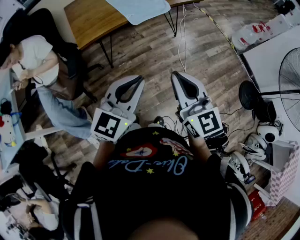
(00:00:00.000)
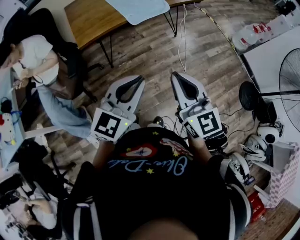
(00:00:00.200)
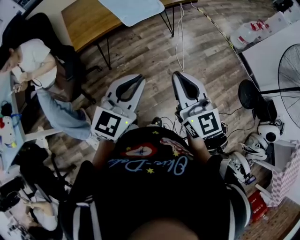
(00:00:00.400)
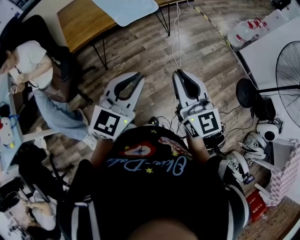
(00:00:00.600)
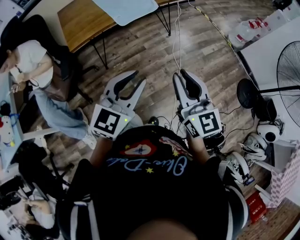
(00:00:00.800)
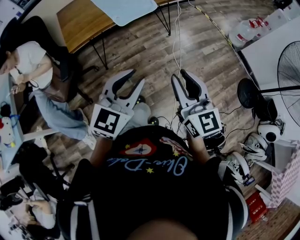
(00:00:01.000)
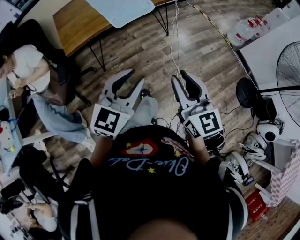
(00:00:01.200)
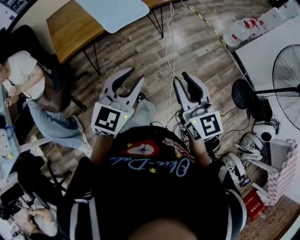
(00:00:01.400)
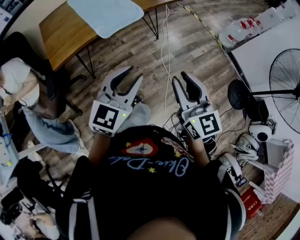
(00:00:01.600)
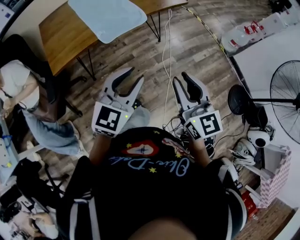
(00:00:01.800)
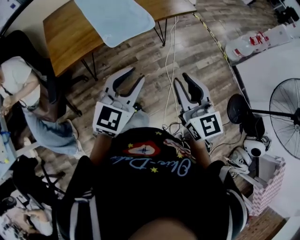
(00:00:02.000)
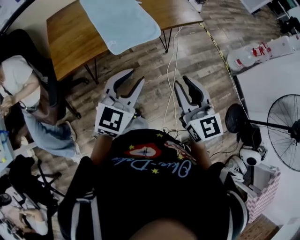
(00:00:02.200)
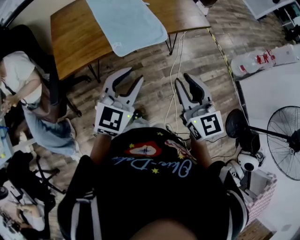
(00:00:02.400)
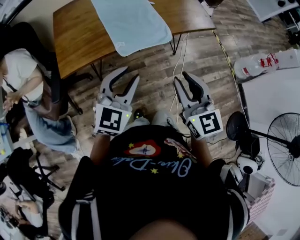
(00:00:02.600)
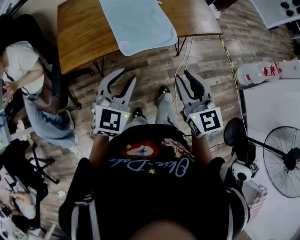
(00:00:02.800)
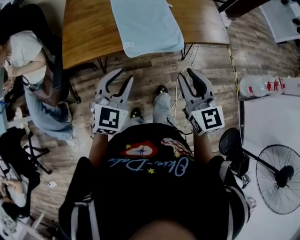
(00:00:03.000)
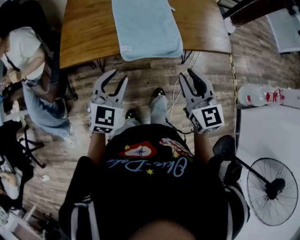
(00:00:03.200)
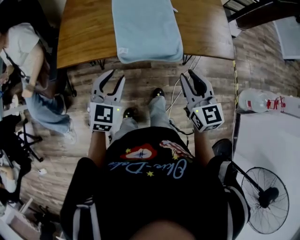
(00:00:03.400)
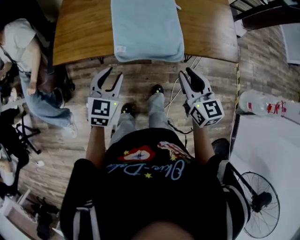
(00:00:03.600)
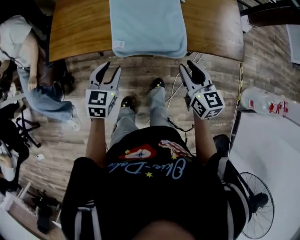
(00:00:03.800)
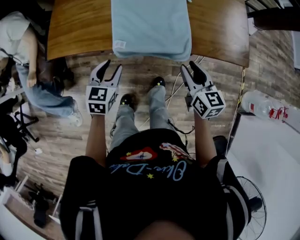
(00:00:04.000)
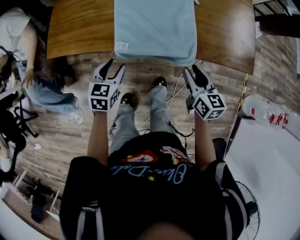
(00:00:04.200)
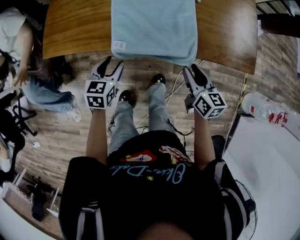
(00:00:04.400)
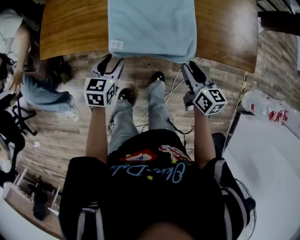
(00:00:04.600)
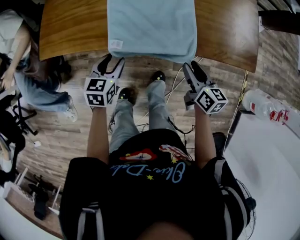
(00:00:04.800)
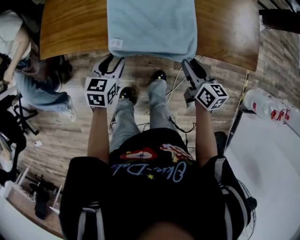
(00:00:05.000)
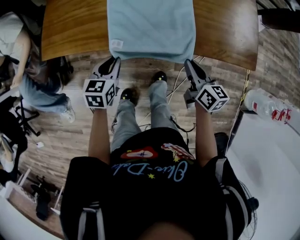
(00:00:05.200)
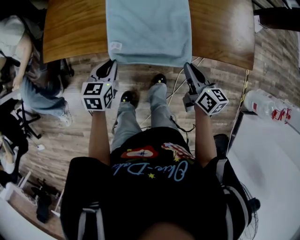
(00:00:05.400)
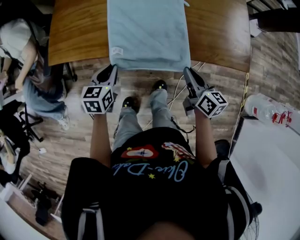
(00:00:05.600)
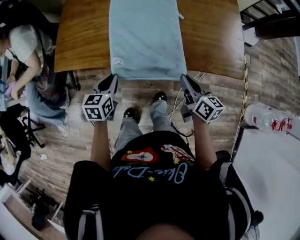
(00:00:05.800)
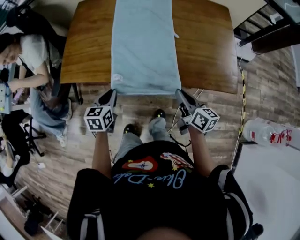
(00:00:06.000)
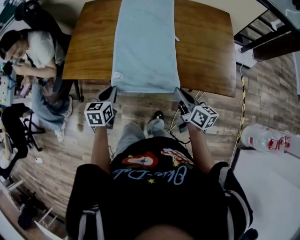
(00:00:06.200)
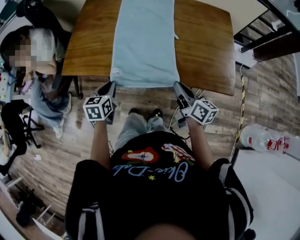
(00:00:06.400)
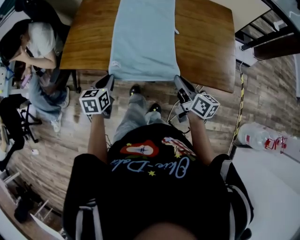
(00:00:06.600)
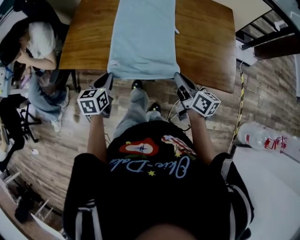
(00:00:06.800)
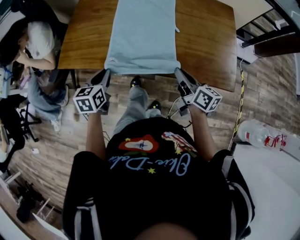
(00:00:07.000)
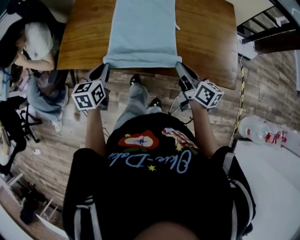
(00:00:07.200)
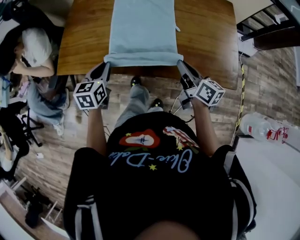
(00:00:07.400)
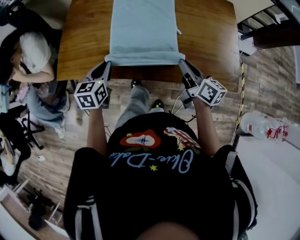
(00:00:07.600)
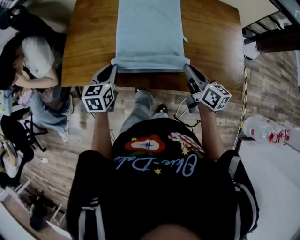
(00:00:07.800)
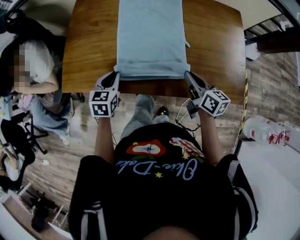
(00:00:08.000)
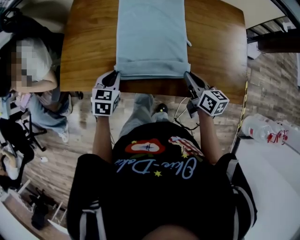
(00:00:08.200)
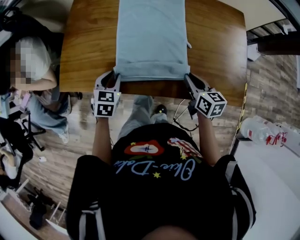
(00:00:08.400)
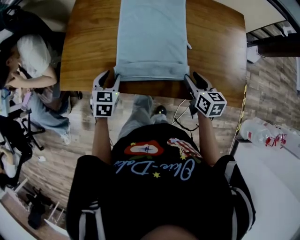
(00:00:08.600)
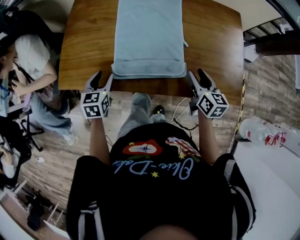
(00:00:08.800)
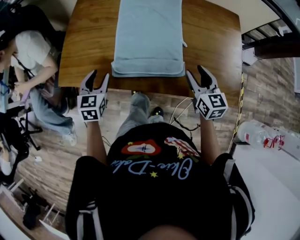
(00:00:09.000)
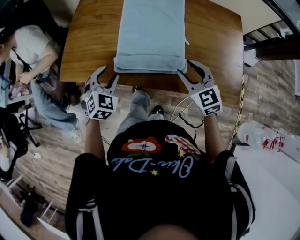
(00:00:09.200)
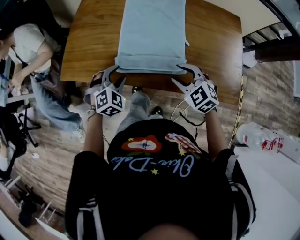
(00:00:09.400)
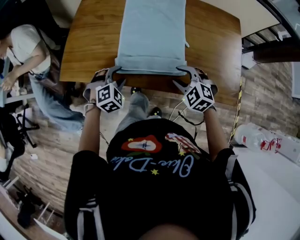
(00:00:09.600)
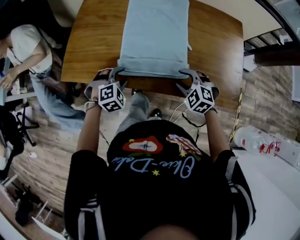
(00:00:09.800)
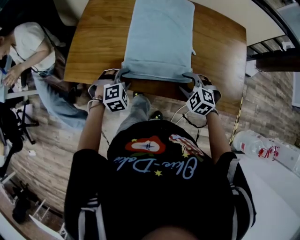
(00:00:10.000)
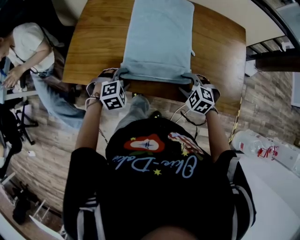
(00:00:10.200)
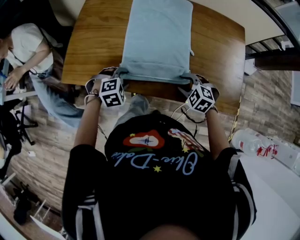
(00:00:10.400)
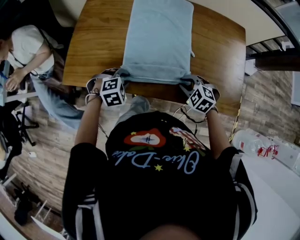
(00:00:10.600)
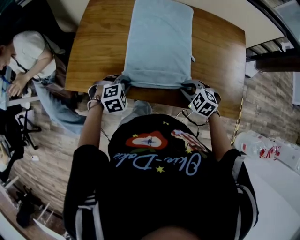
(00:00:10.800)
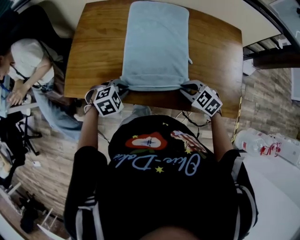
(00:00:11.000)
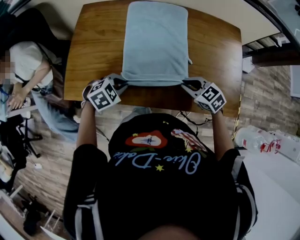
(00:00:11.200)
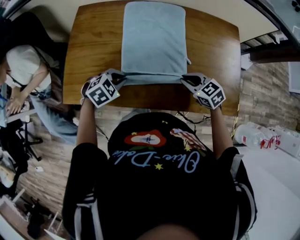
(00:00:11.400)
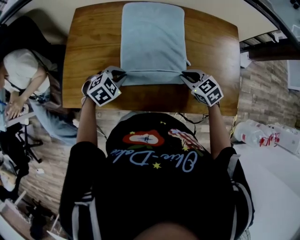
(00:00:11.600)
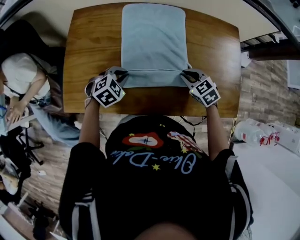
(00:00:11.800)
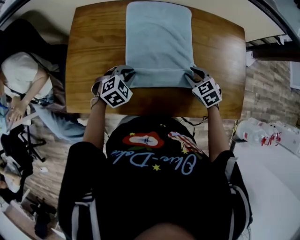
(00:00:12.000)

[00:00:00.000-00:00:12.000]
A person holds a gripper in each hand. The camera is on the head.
00:00:00.000 to 00:00:01.600: The right gripper heads to the right and forward, covering roughly 15 cm. The left gripper heads forward and to the right, covering approximately 15 cm, and opens.
00:00:01.600 to 00:00:03.000: The left gripper changes place by approximately 25 cm, and swivels some 30 degrees. Meanwhile the right gripper changes place by roughly 30 cm, and swivels some 20 degrees.
00:00:03.000 to 00:00:04.400: The right gripper heads downward, forward and to the right, covering approximately 30 cm, and rotates about 40 degrees. Meanwhile the left gripper goes approximately 25 cm downward and forward, and swivels roughly 40 degrees.
00:00:04.400 to 00:00:06.000: The left gripper heads upward, covering about 5 cm, and closes. Meanwhile the right gripper shifts by some 5 cm, swivels some 20 degrees, and closes.
00:00:06.000 to 00:00:07.600: The left gripper goes roughly 10 cm forward and upward, while the right gripper shifts roughly 10 cm forward.
00:00:07.600 to 00:00:09.000: The left gripper opens its fingers, while the right gripper swivels approximately 40 degrees, and opens its fingers.
00:00:09.000 to 00:00:10.400: The right gripper heads downward and to the left, covering roughly 10 cm, and tips its fingers downward by approximately 40 degrees. The left gripper moves downward and to the right, some 10 cm, and twists about 60 degrees clockwise, seen from behind.
00:00:10.400 to 00:00:12.000: The right gripper shifts by about 15 cm, and turns by about 30 degrees. The left gripper moves approximately 15 cm, and closes up.

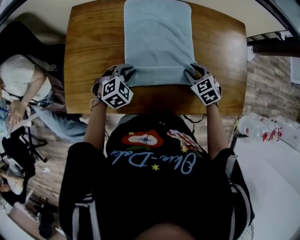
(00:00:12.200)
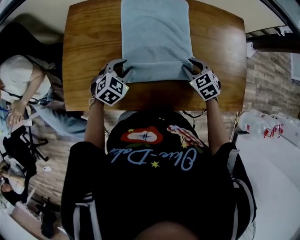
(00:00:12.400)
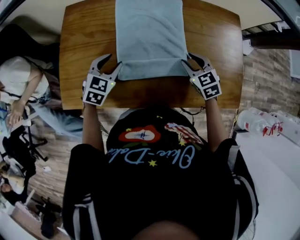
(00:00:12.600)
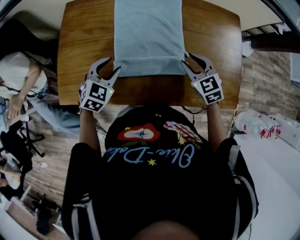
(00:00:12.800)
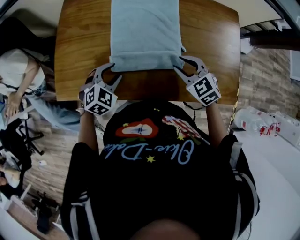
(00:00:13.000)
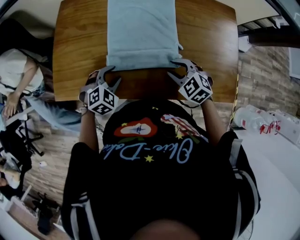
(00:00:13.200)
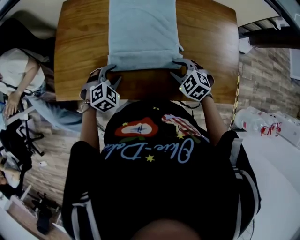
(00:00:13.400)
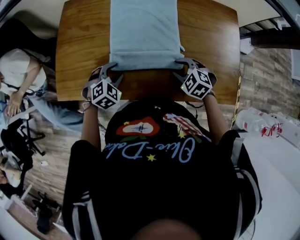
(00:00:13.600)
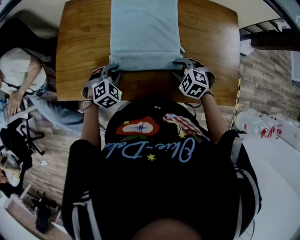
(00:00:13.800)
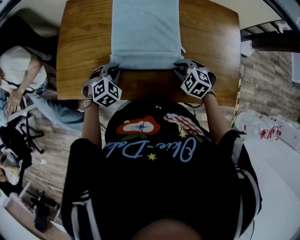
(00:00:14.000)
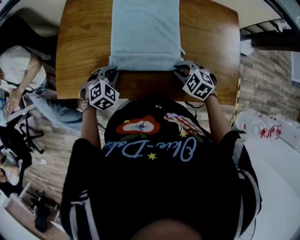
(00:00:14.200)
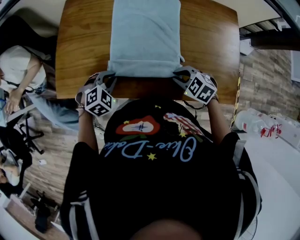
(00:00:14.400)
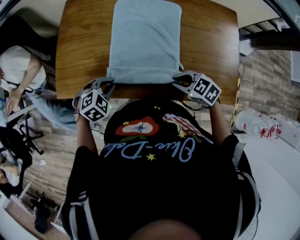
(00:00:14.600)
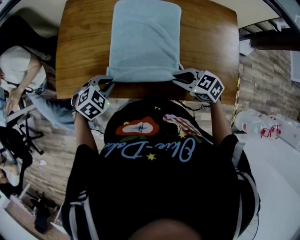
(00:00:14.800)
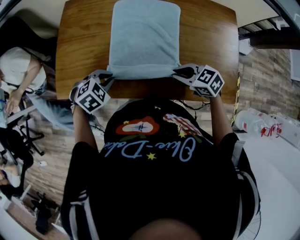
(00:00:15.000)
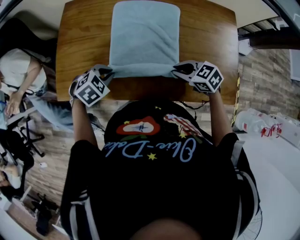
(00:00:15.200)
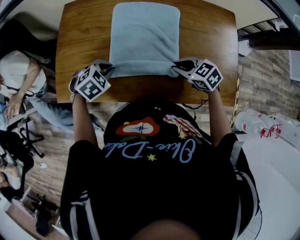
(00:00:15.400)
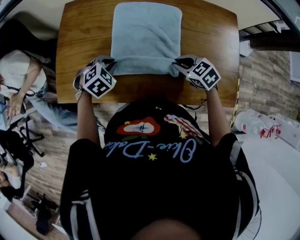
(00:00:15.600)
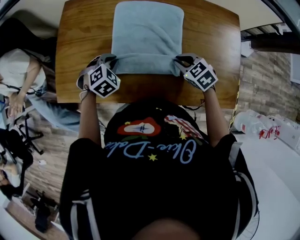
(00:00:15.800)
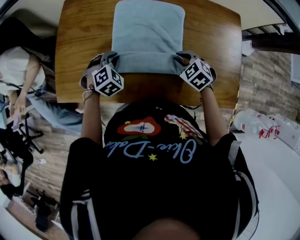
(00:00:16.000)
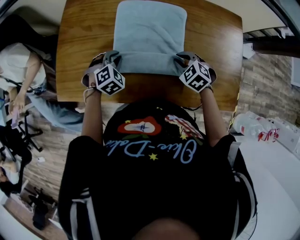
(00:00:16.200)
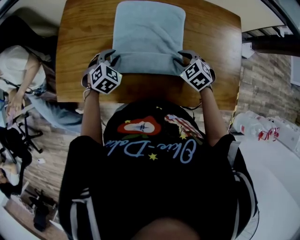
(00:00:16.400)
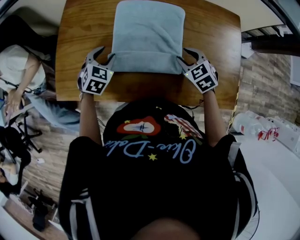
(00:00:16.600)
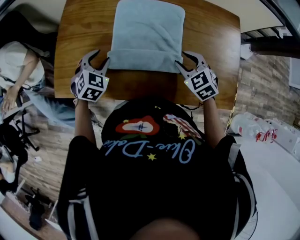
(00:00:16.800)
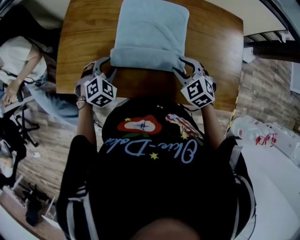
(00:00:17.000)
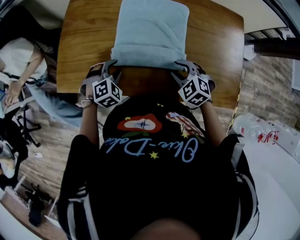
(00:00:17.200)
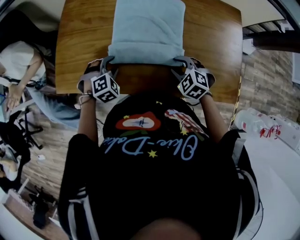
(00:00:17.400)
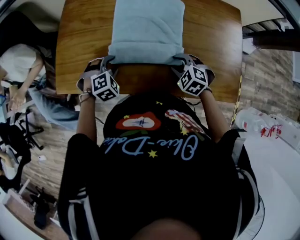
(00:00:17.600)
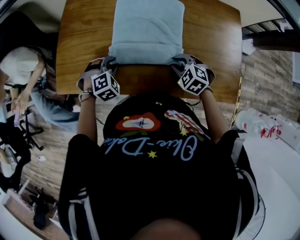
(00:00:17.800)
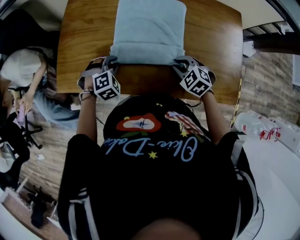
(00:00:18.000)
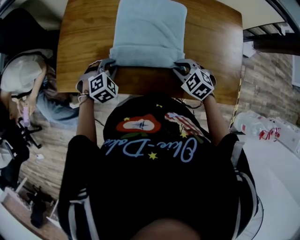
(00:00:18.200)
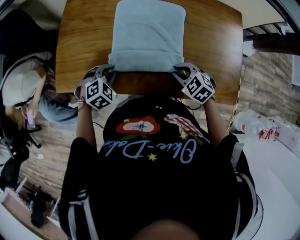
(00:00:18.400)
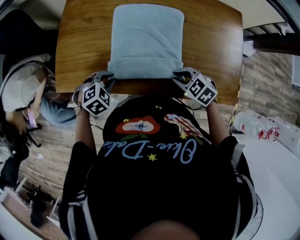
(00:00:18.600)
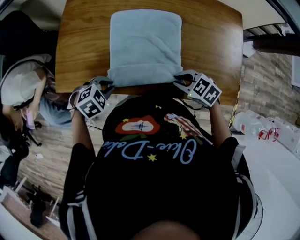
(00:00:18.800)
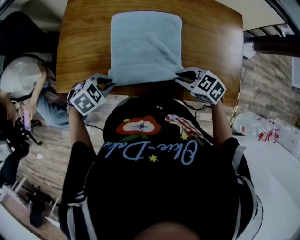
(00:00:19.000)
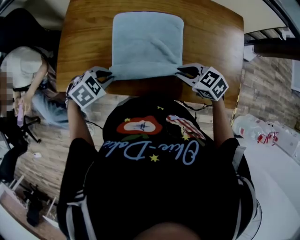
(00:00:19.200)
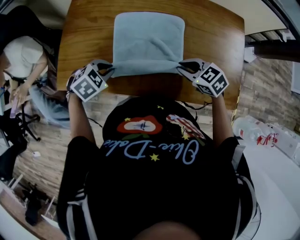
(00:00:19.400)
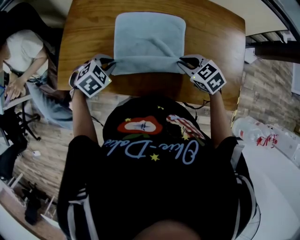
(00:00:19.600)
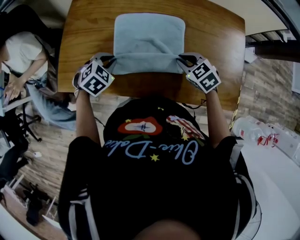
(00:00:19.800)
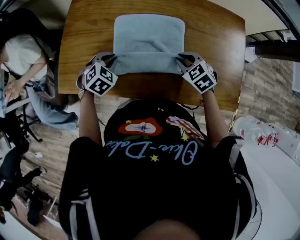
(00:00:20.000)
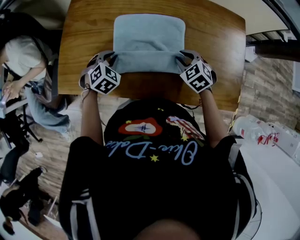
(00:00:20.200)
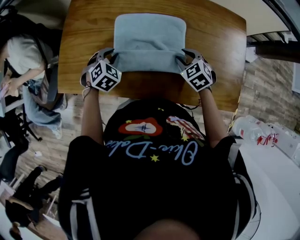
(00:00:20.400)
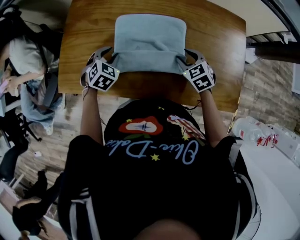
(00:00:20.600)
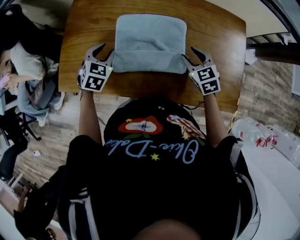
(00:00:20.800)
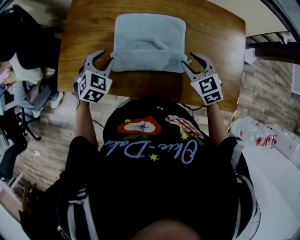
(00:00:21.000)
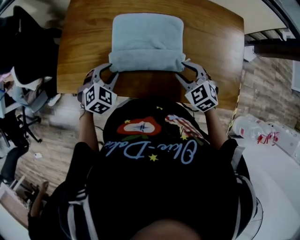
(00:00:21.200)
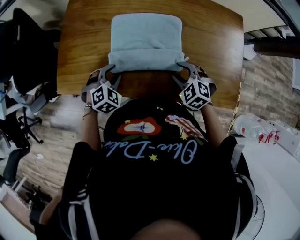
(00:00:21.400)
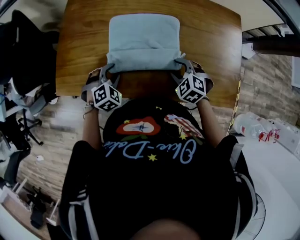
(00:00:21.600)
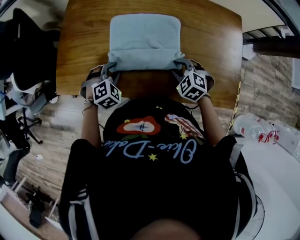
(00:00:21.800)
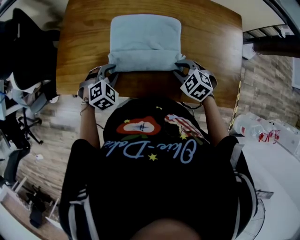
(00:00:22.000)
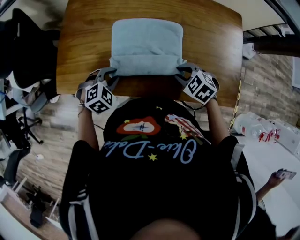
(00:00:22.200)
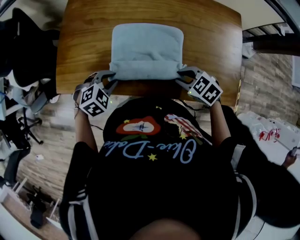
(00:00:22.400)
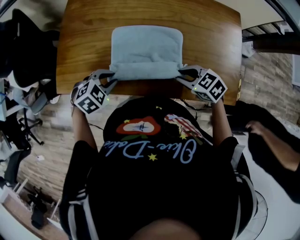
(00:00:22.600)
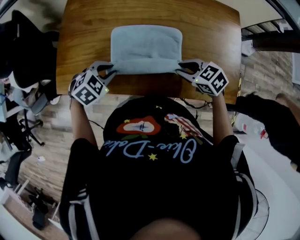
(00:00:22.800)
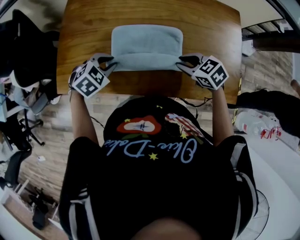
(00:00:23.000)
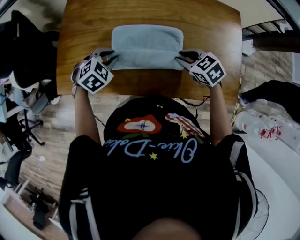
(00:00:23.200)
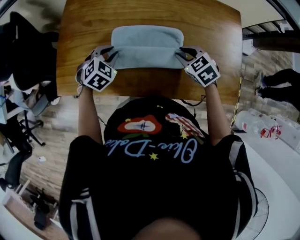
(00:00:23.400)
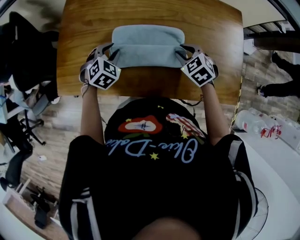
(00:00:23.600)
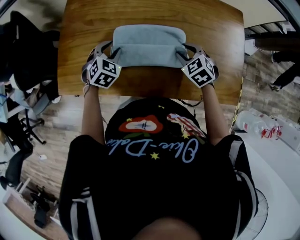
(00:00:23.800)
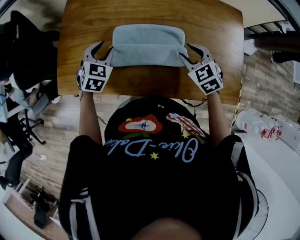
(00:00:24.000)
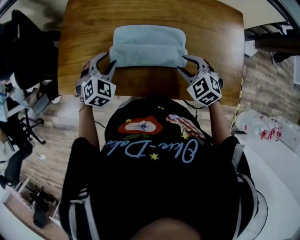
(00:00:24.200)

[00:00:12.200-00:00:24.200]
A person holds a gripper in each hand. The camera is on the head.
00:00:12.200 to 00:00:13.800: The grippers both shift backward by approximately 5 cm. The right gripper reaches about 5 cm upward, then returns, and changes its angle by roughly 30 degrees. The left gripper opens, then closes once more.
00:00:13.800 to 00:00:15.200: The right gripper changes its angle by some 40 degrees, and closes its fingers.
00:00:15.200 to 00:00:16.600: The left gripper ends up roughly 10 cm from where it was, turns by approximately 30 degrees, and opens its fingers; the right gripper ends up roughly 10 cm from where it was, swivels some 30 degrees, and opens.
00:00:16.600 to 00:00:18.200: The grippers both shift backward by some 10 cm. The left gripper changes its angle by about 30 degrees, and closes its fingers.
00:00:18.200 to 00:00:19.800: The right gripper moves about 5 cm.
00:00:19.800 to 00:00:21.200: The left gripper opens up; the right gripper shifts by about 5 cm, and opens.
00:00:21.200 to 00:00:22.600: The right gripper changes its angle by about 30 degrees.
00:00:22.600 to 00:00:24.200: The left gripper turns by about 30 degrees, while the right gripper changes its angle by some 30 degrees.
